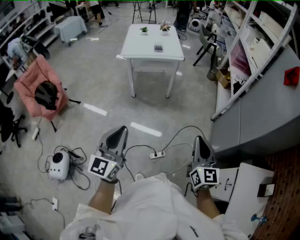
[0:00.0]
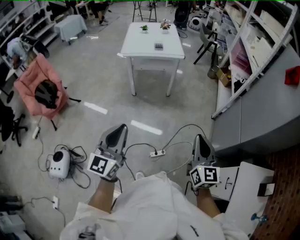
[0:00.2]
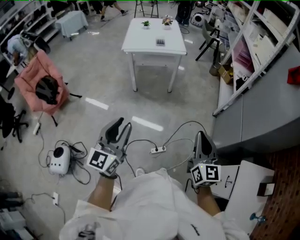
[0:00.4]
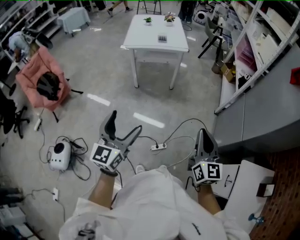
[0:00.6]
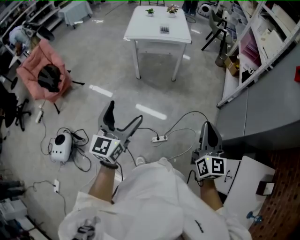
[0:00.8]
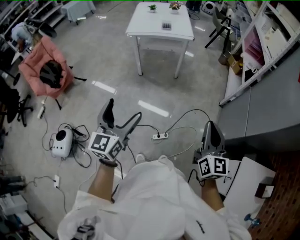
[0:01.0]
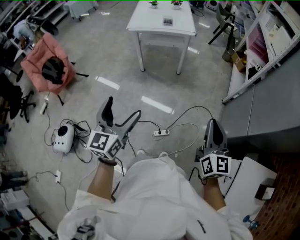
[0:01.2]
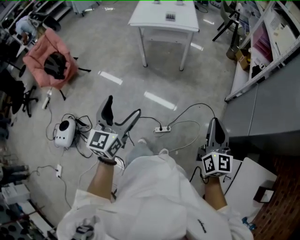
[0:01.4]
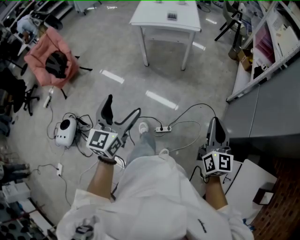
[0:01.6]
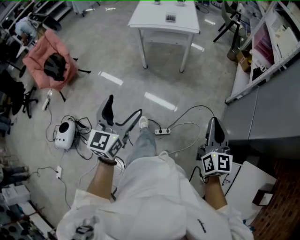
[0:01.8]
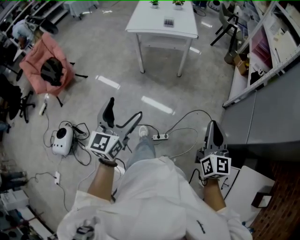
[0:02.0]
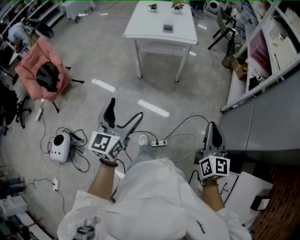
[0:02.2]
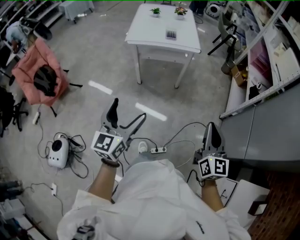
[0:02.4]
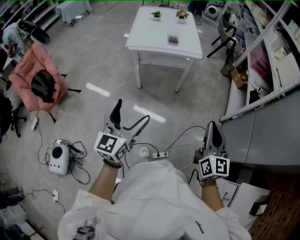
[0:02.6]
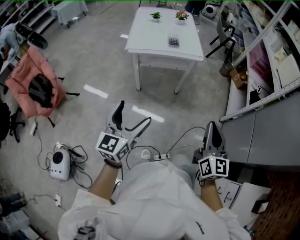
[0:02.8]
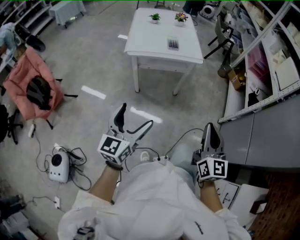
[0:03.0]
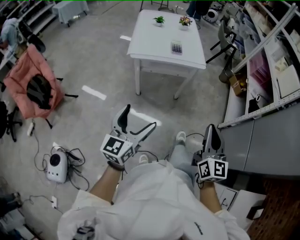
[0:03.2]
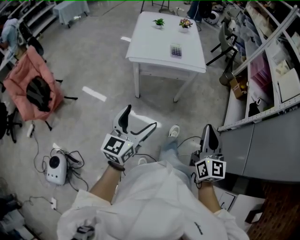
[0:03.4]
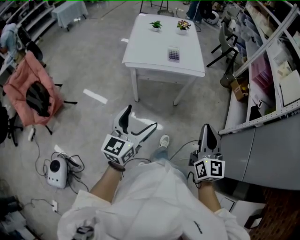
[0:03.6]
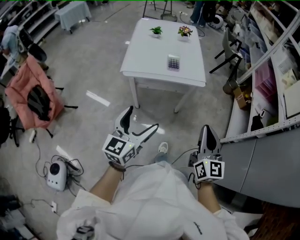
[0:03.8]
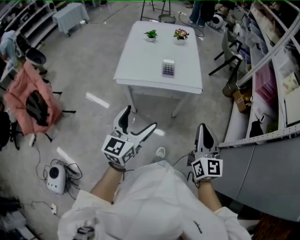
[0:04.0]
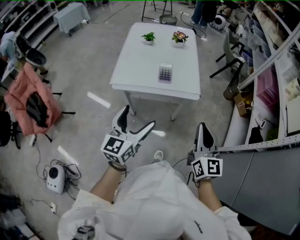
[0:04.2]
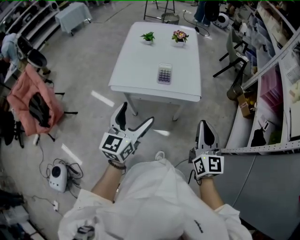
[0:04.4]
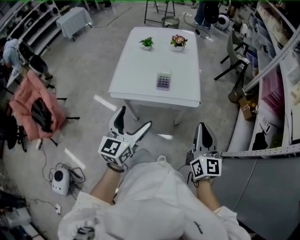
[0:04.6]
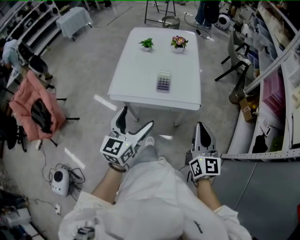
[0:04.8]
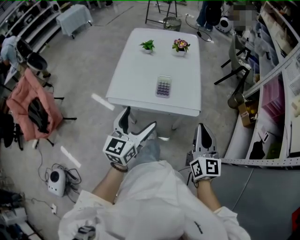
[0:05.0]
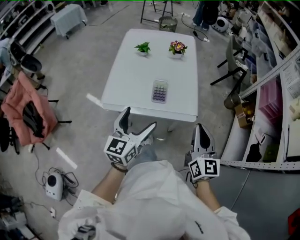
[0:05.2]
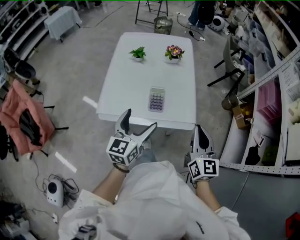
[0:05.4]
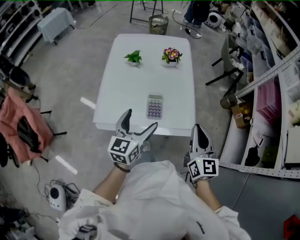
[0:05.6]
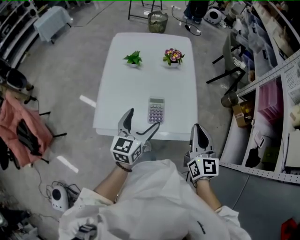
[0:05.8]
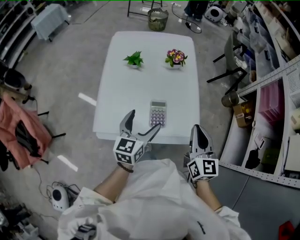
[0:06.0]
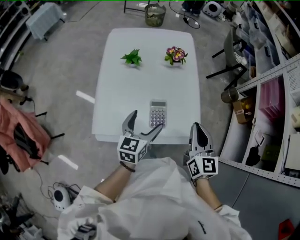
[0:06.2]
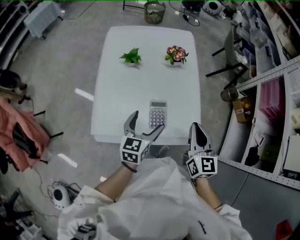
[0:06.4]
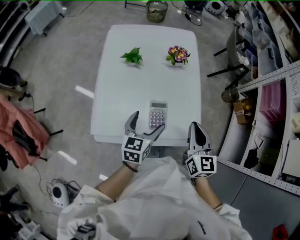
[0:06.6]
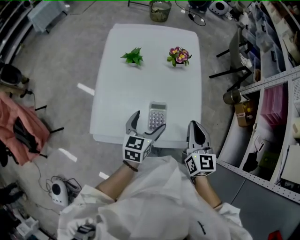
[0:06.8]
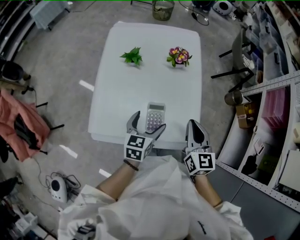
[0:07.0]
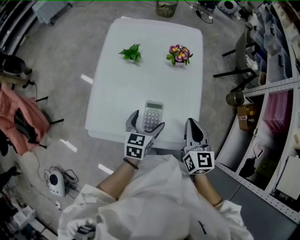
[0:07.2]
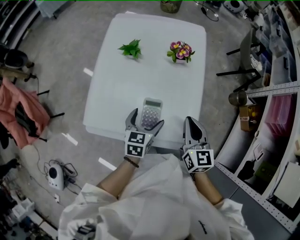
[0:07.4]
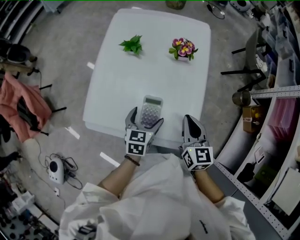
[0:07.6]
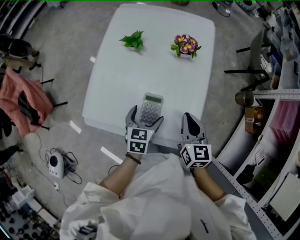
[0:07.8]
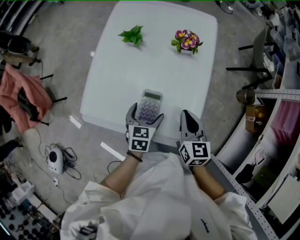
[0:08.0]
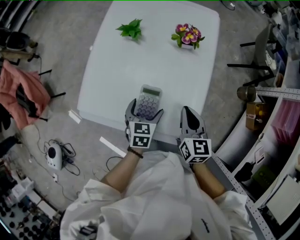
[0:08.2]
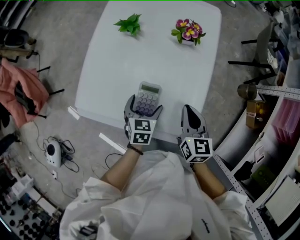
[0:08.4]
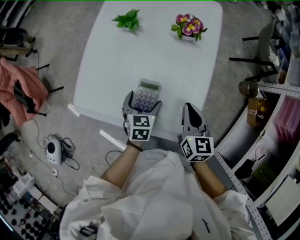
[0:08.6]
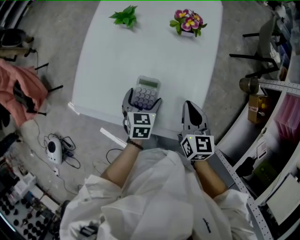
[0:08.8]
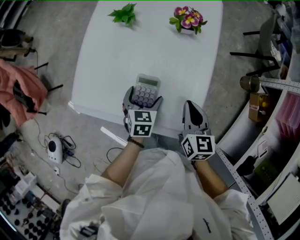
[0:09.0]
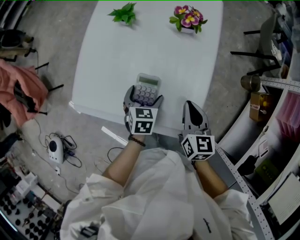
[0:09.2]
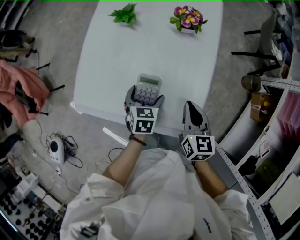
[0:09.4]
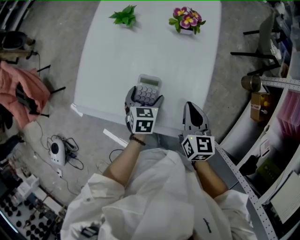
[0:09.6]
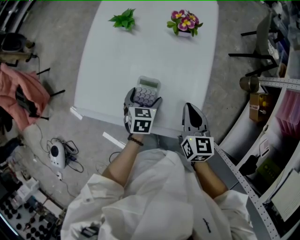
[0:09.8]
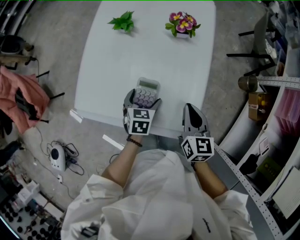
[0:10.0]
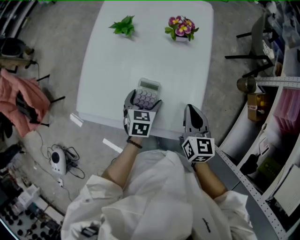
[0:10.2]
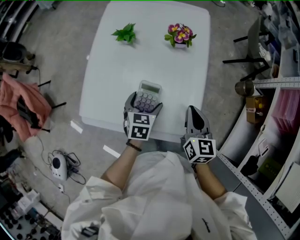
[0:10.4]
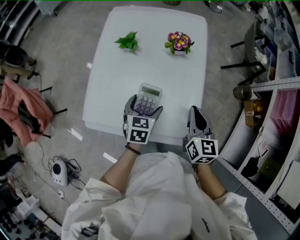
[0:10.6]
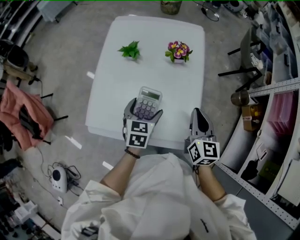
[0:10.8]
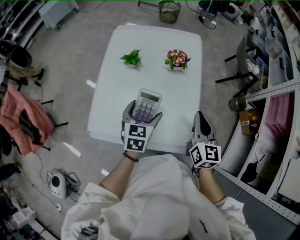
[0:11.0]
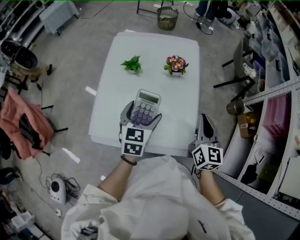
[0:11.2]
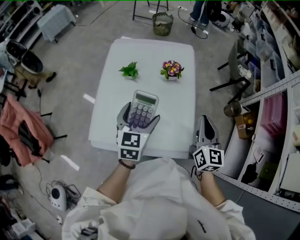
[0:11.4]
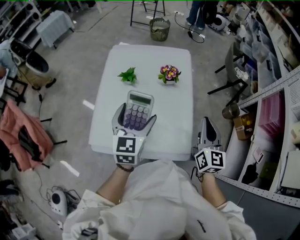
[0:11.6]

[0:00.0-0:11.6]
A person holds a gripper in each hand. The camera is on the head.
0:00.0 to 0:01.4: The left gripper heads to the right and downward, covering some 10 cm, and opens. The right gripper heads to the right, covering approximately 10 cm.
0:01.4 to 0:02.8: The grippers both shift forward and to the left by about 30 cm.
0:02.8 to 0:04.4: Both grippers move forward, about 40 cm.
0:04.4 to 0:05.8: The grippers both shift forward by some 30 cm.
0:05.8 to 0:07.2: The right gripper is displaced forward and downward by about 15 cm. The left gripper moves downward and forward, some 15 cm, and rotates roughly 20 degrees.
0:07.2 to 0:08.8: Both grippers travel together downward, about 10 cm. The left gripper turns by roughly 20 degrees.
0:08.8 to 0:10.2: The grippers move only a little.
0:10.2 to 0:11.6: The grippers both shift upward by roughly 25 cm. The right gripper swivels roughly 30 degrees. The left gripper points its fingers approximately 30 degrees further upward.

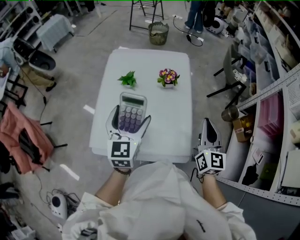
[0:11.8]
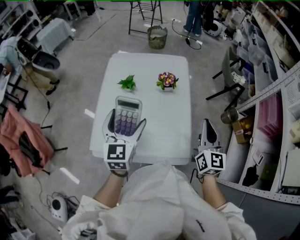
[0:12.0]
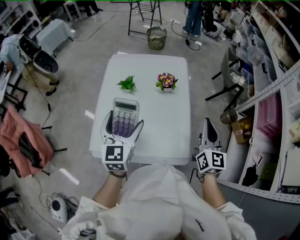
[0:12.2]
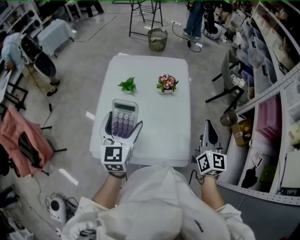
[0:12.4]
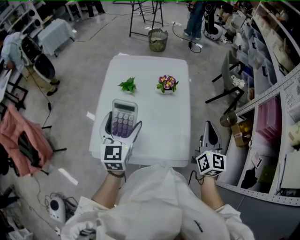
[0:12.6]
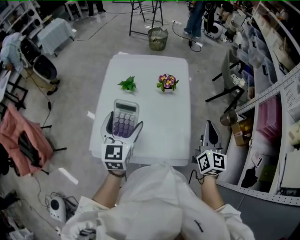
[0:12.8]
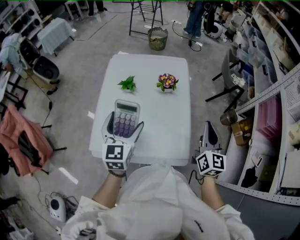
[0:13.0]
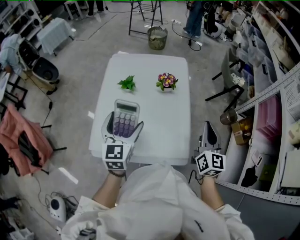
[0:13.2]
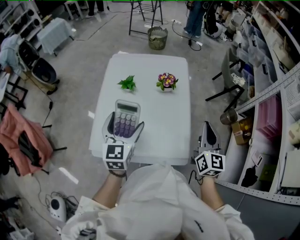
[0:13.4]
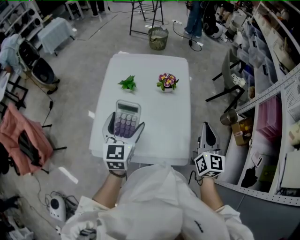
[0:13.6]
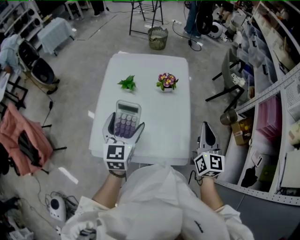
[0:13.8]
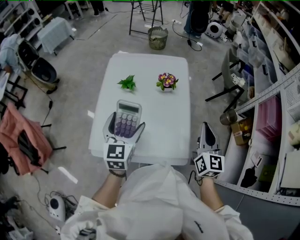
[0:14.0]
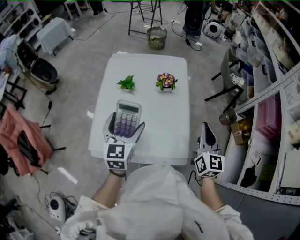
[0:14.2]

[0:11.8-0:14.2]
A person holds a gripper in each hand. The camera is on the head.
0:11.8 to 0:13.0: There are only small adjustments of the grippers.
0:13.0 to 0:14.2: The two grippers keep their place.

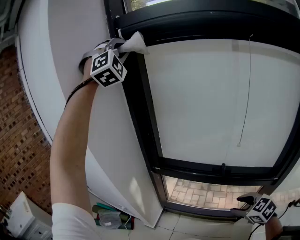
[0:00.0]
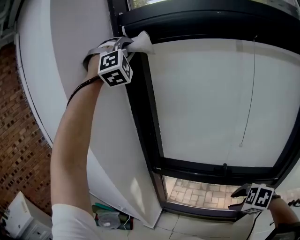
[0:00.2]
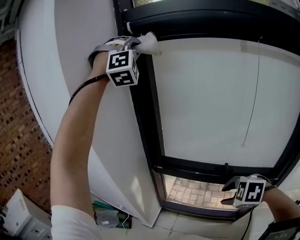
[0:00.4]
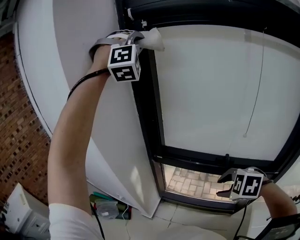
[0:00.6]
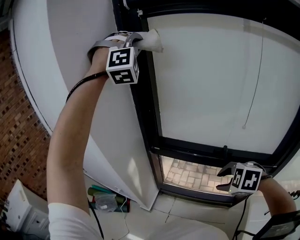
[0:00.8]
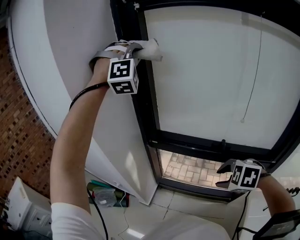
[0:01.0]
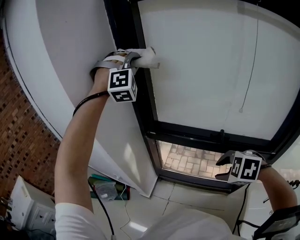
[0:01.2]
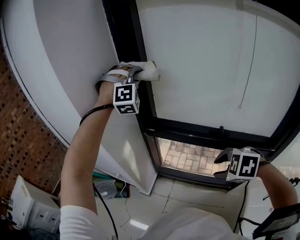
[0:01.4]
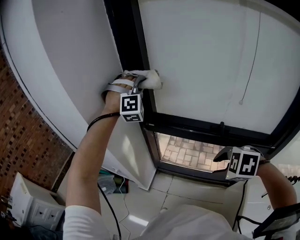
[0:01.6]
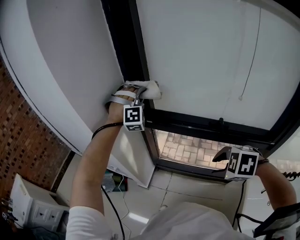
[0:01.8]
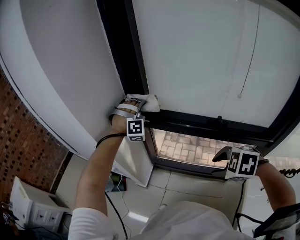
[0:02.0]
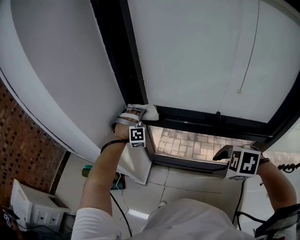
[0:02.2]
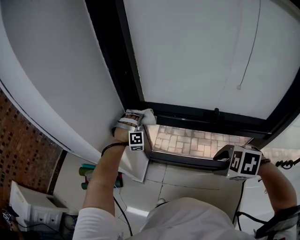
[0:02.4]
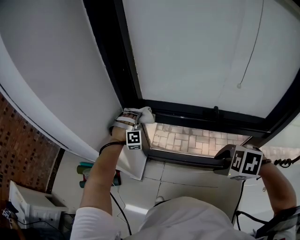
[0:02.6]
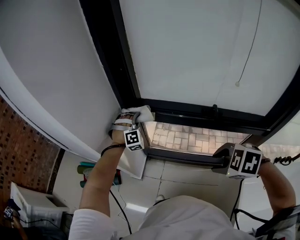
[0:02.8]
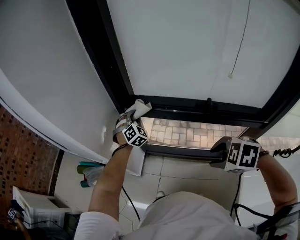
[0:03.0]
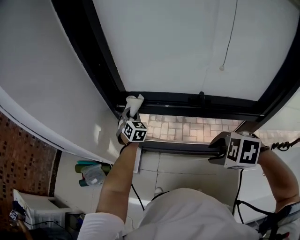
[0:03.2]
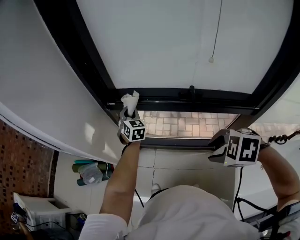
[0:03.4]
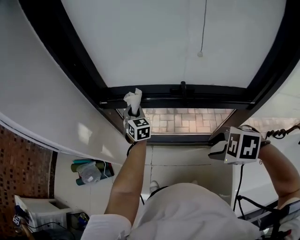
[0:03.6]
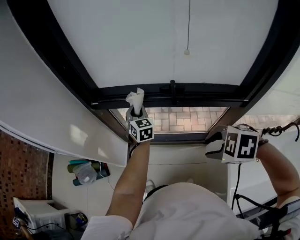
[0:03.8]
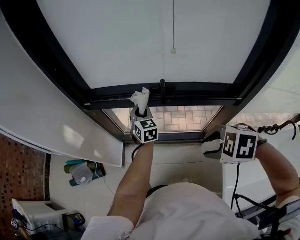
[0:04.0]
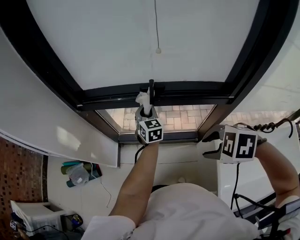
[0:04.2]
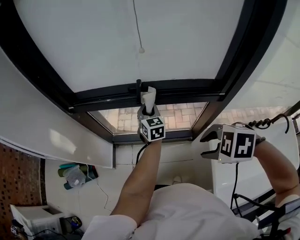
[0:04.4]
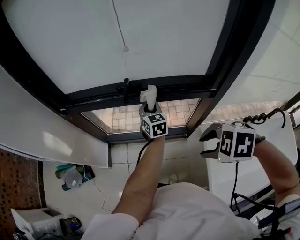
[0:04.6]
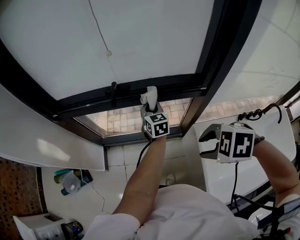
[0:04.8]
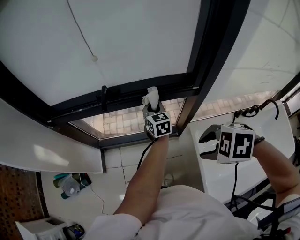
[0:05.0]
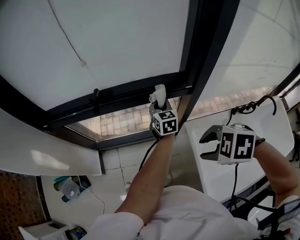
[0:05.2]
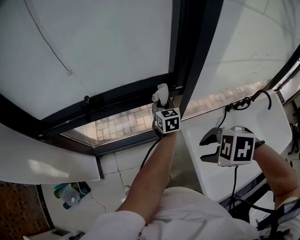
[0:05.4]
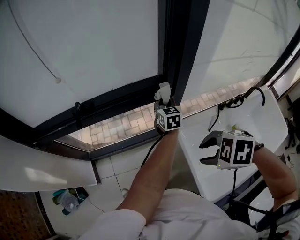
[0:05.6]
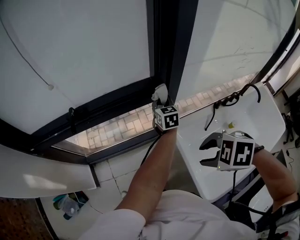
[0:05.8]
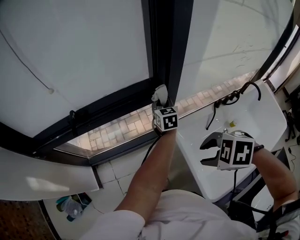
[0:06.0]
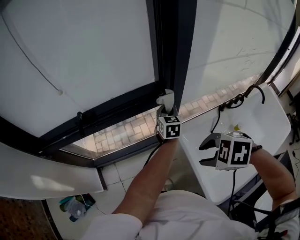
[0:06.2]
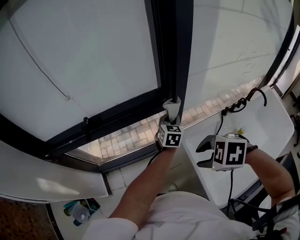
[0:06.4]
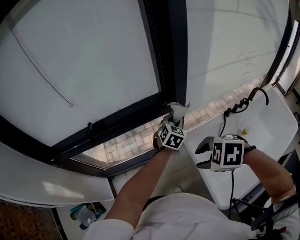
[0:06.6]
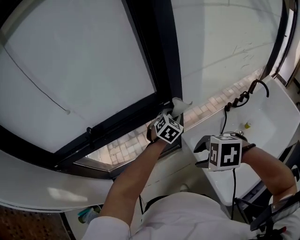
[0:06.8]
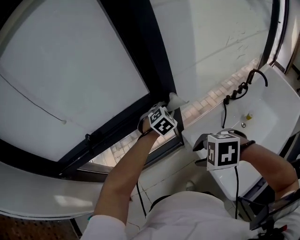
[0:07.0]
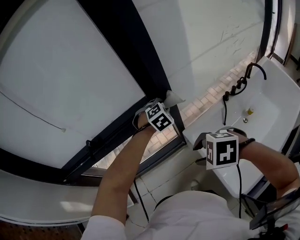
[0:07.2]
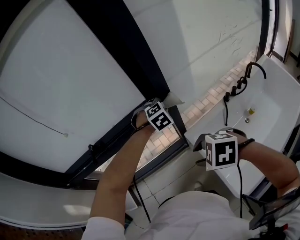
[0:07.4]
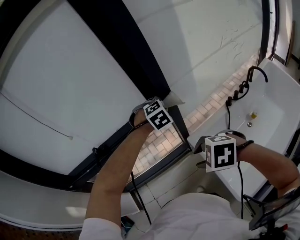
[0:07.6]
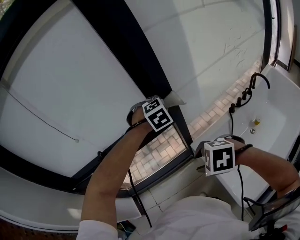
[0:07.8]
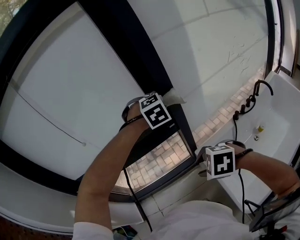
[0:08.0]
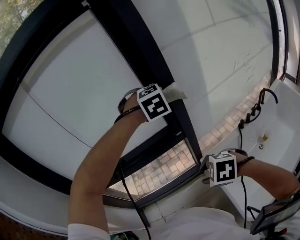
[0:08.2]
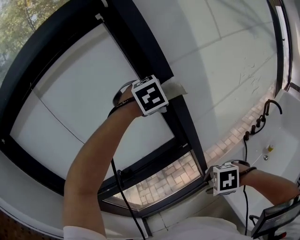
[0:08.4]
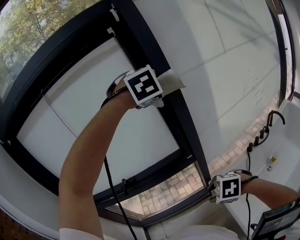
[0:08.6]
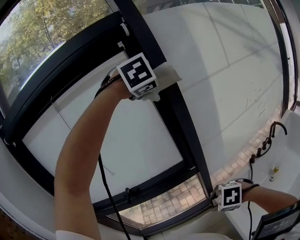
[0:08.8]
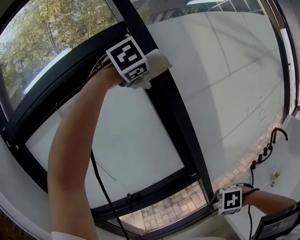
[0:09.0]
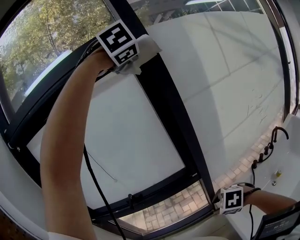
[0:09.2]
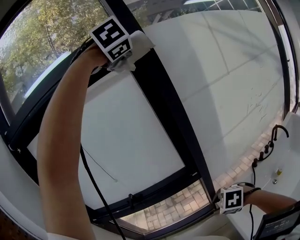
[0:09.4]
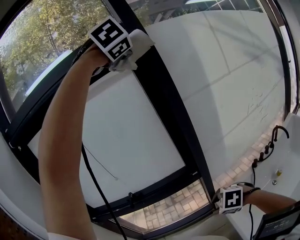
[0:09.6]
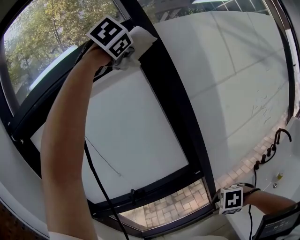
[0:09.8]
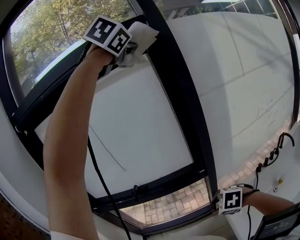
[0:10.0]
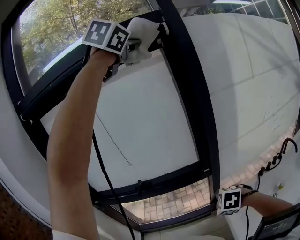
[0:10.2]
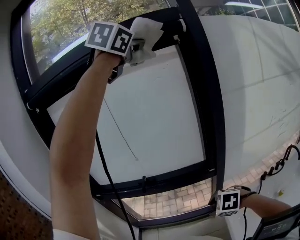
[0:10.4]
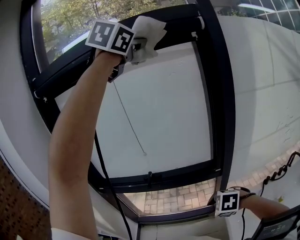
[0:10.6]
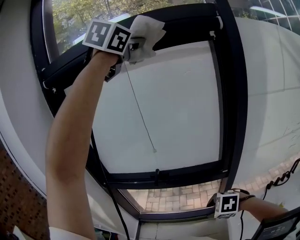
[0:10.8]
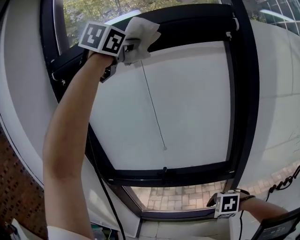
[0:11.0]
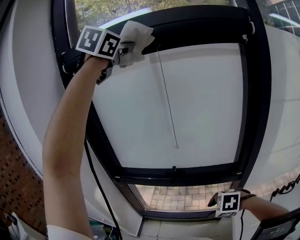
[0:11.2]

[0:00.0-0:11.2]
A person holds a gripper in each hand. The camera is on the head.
0:00.0 to 0:01.6: The right gripper shifts about 10 cm to the left, and changes its angle by roughly 40 degrees. Meanwhile the left gripper heads downward, covering approximately 40 cm, and changes its angle by approximately 20 degrees.
0:01.6 to 0:03.2: The right gripper changes place by some 5 cm, while the left gripper heads downward, covering about 30 cm, and twists some 60 degrees counterclockwise, seen from behind.
0:03.2 to 0:04.8: The right gripper heads backward and to the right, covering approximately 25 cm; the left gripper shifts some 50 cm backward and to the right, and changes its angle by about 30 degrees.
0:04.8 to 0:06.4: The right gripper is displaced to the right and backward by approximately 10 cm, while the left gripper travels to the right and backward by approximately 25 cm, and swivels approximately 30 degrees.
0:06.4 to 0:08.0: The left gripper is displaced upward by some 20 cm, and rotates around the line of its fingers by some 70 degrees, clockwise from behind.
0:08.0 to 0:09.6: The left gripper goes about 50 cm upward, and rotates roughly 30 degrees.
0:09.6 to 0:11.2: The left gripper heads to the left, covering roughly 40 cm, and swivels some 40 degrees. The right gripper moves to the left and forward, some 15 cm, and changes its angle by roughly 30 degrees.
